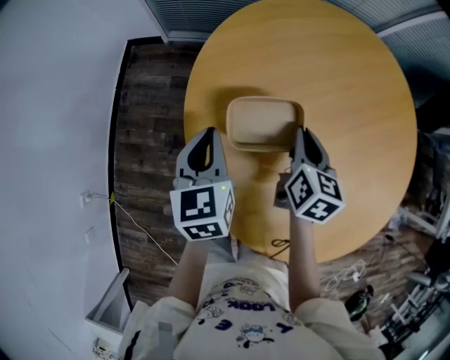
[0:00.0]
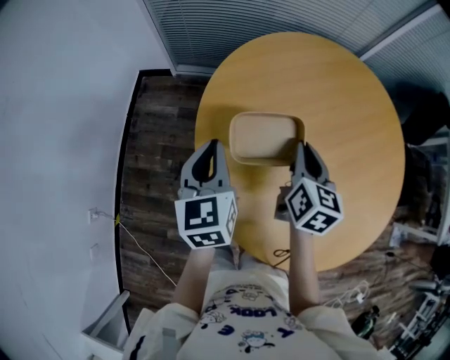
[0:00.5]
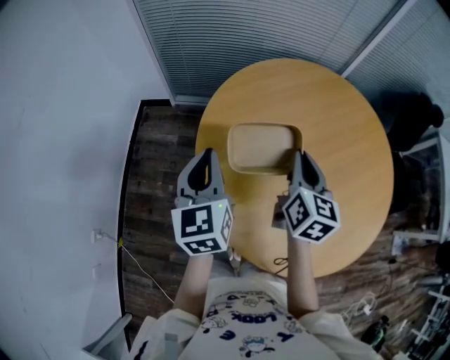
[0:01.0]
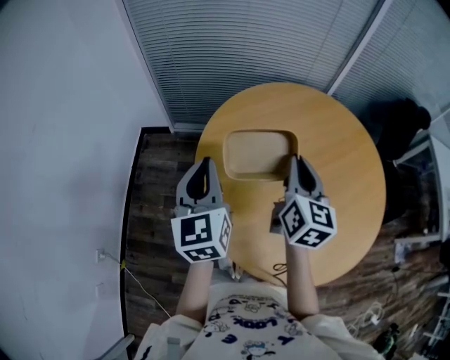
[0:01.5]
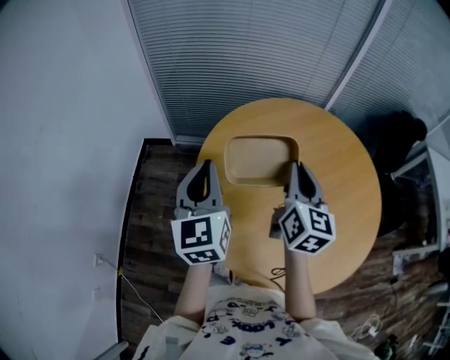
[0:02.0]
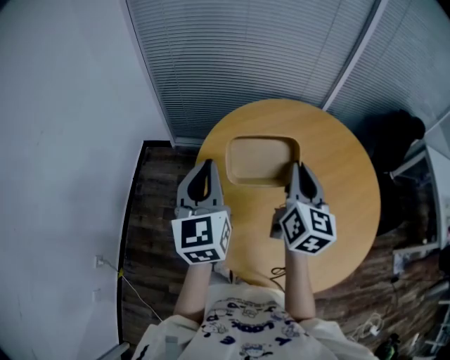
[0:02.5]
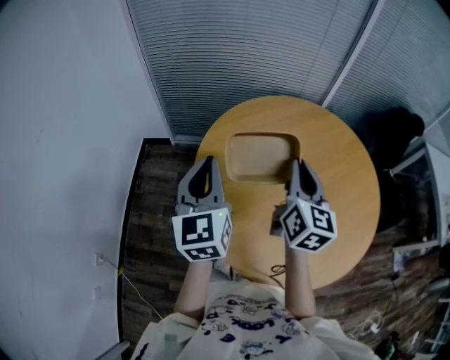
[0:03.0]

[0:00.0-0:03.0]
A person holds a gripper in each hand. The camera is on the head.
0:00.0 to 0:01.5: Both grippers travel together upward, some 20 cm. The left gripper rotates roughly 20 degrees, while the right gripper changes its angle by roughly 20 degrees.
0:01.5 to 0:03.0: The left gripper ends up about 5 cm from where it was.

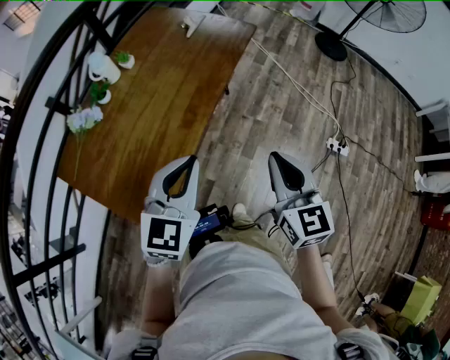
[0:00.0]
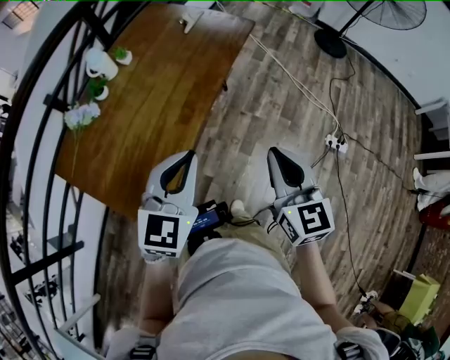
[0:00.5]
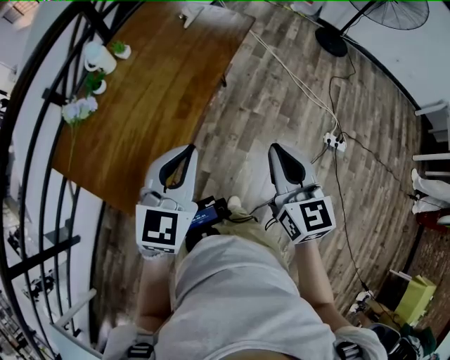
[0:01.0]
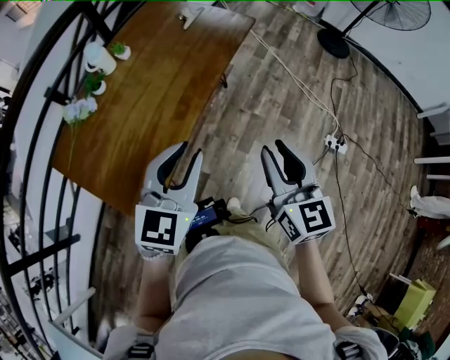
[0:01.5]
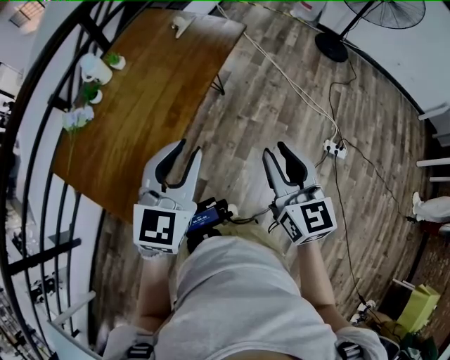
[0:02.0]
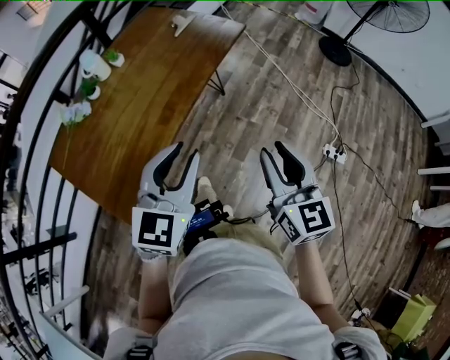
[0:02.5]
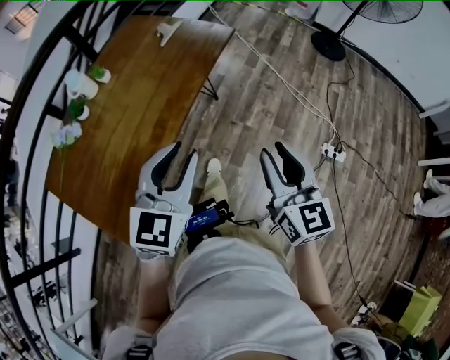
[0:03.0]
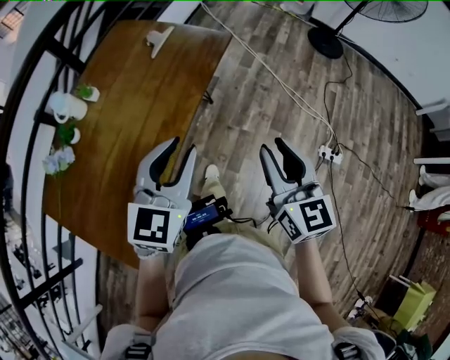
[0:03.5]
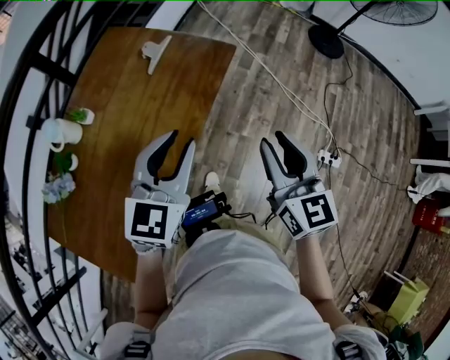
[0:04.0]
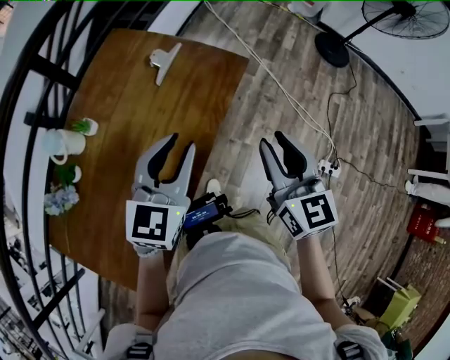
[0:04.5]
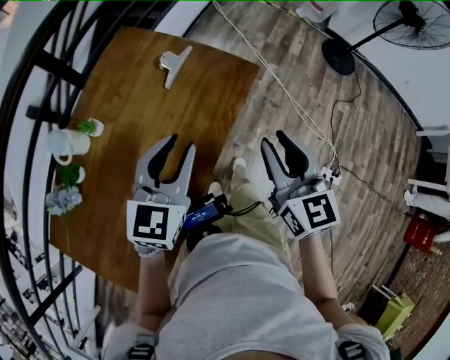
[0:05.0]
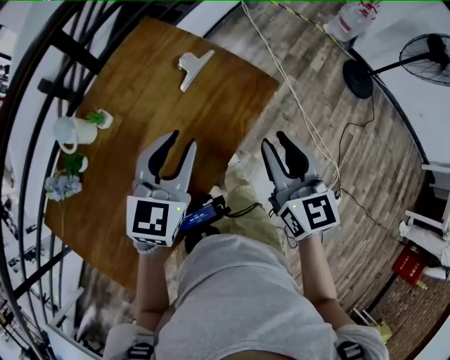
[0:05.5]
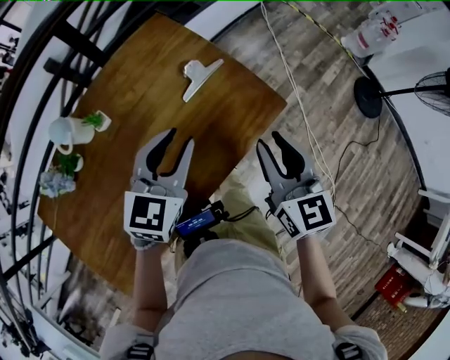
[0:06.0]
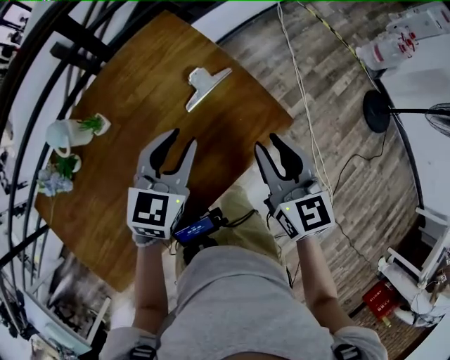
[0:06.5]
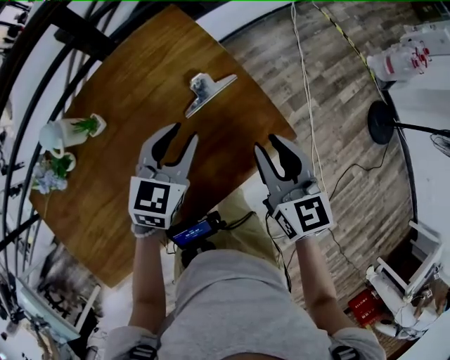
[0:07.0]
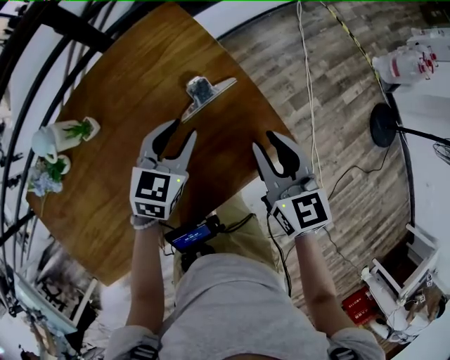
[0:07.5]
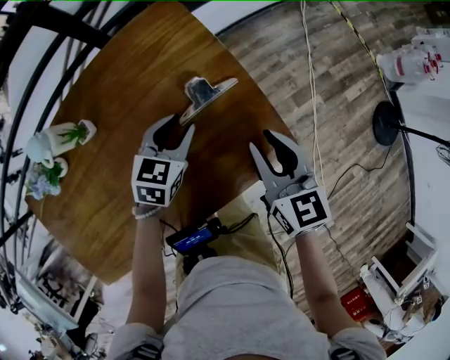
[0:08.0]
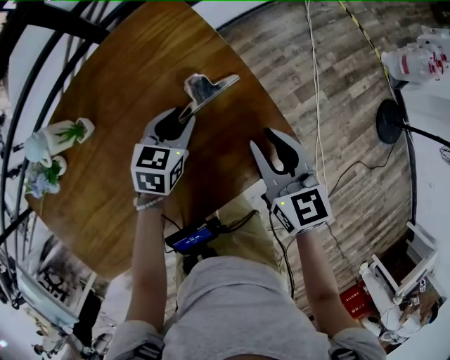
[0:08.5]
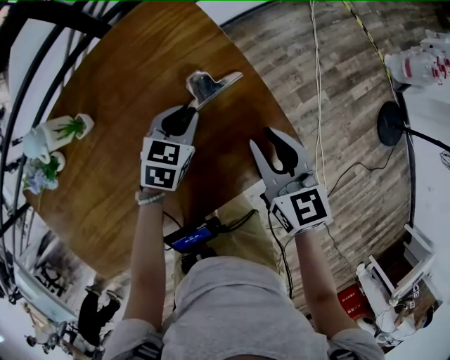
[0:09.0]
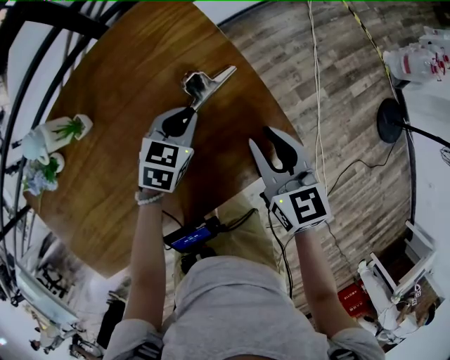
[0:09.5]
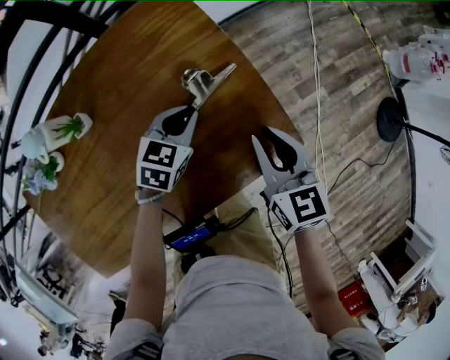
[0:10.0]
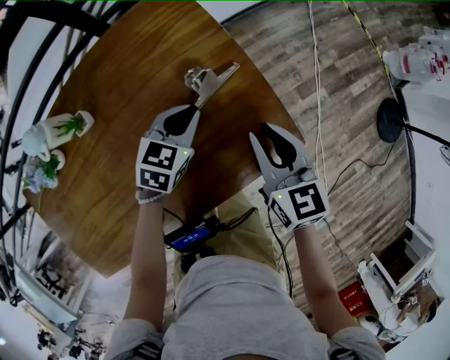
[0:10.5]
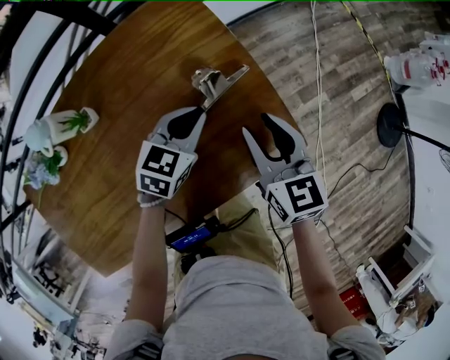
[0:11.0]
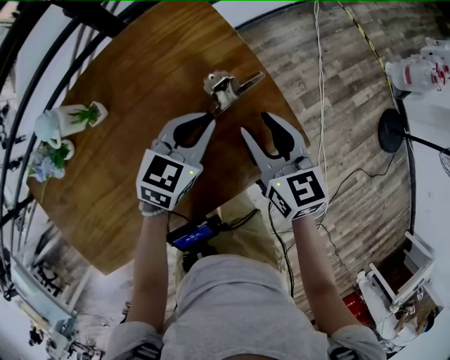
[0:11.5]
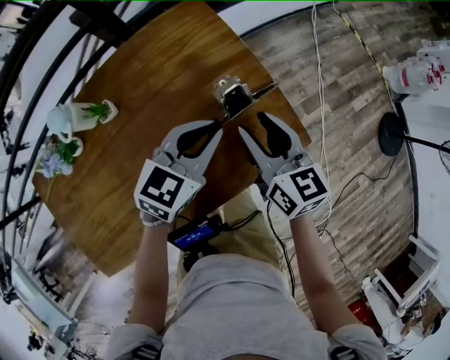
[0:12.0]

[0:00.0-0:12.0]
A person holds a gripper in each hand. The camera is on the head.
0:00.0 to 0:02.0: The two grippers go approximately 5 cm to the right. The left gripper opens; the right gripper opens its fingers.
0:02.0 to 0:04.0: The two grippers go approximately 25 cm forward.
0:04.0 to 0:06.0: The right gripper is displaced forward by roughly 20 cm, and swivels roughly 20 degrees; the left gripper moves forward and to the left, roughly 20 cm, and rotates approximately 20 degrees.
0:06.0 to 0:08.0: The right gripper heads forward and downward, covering some 15 cm; the left gripper goes approximately 20 cm downward and forward, and turns by some 20 degrees.
0:08.0 to 0:10.0: The left gripper closes its fingers.
0:10.0 to 0:12.0: The left gripper travels upward by some 15 cm, and rotates about 20 degrees. The right gripper shifts approximately 5 cm to the left, and opens.

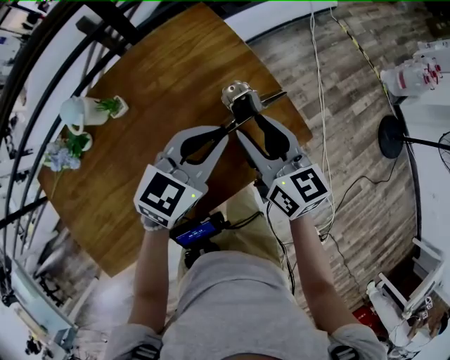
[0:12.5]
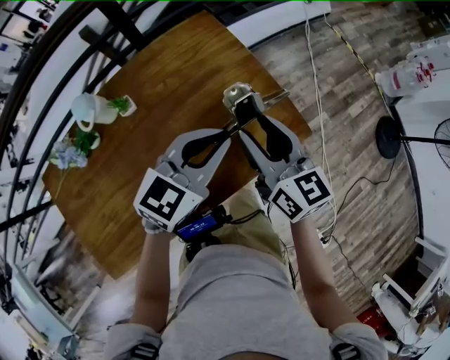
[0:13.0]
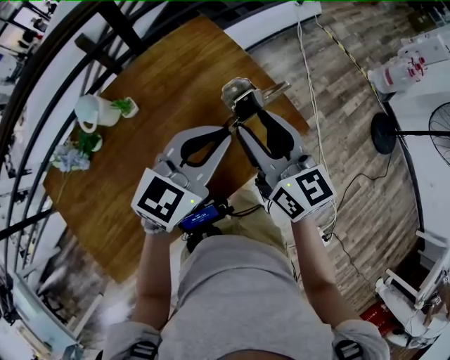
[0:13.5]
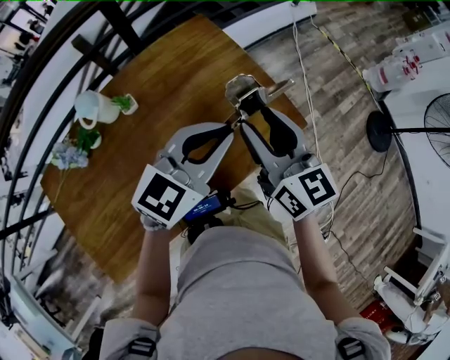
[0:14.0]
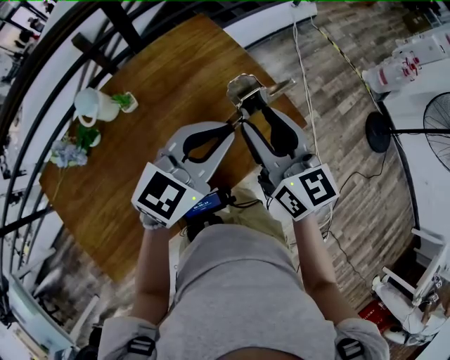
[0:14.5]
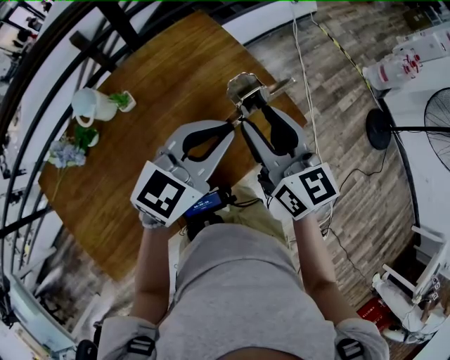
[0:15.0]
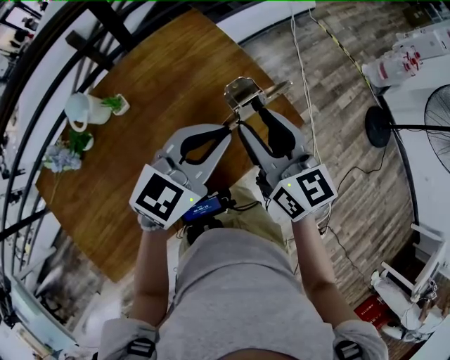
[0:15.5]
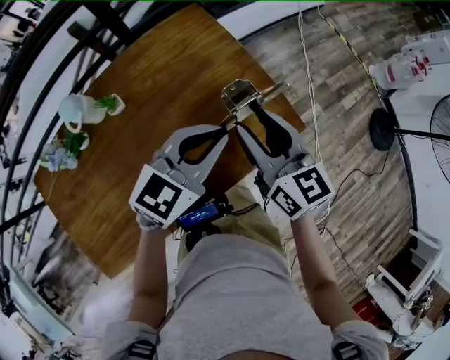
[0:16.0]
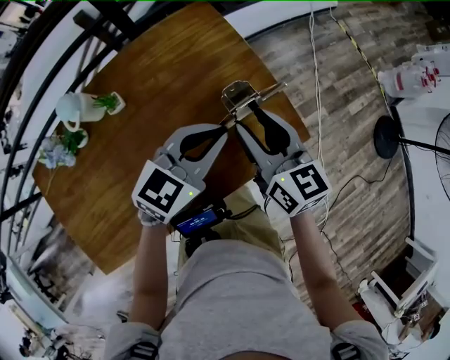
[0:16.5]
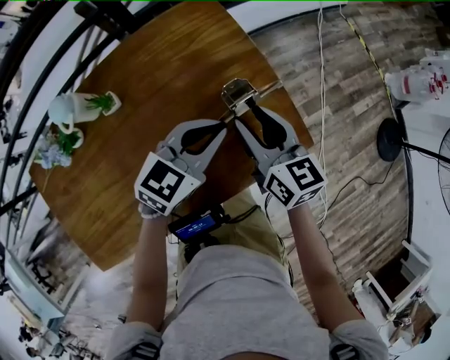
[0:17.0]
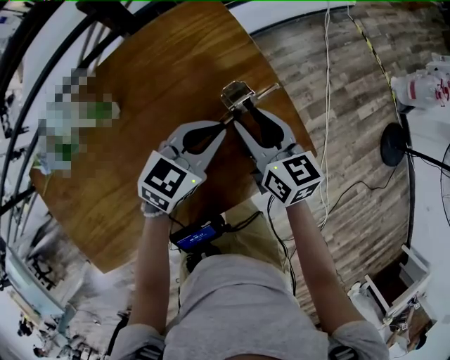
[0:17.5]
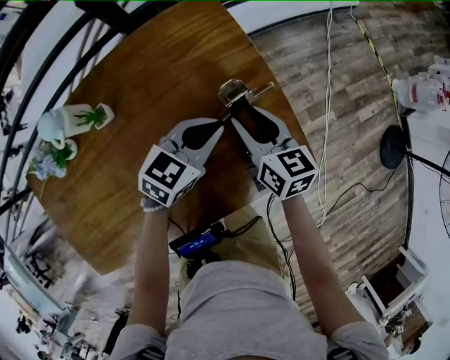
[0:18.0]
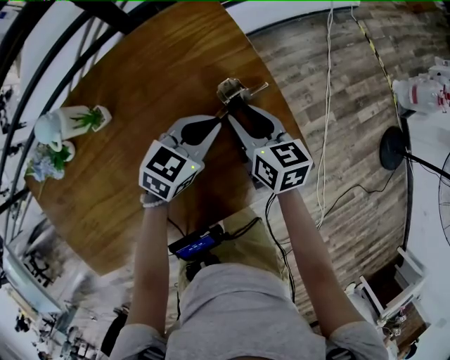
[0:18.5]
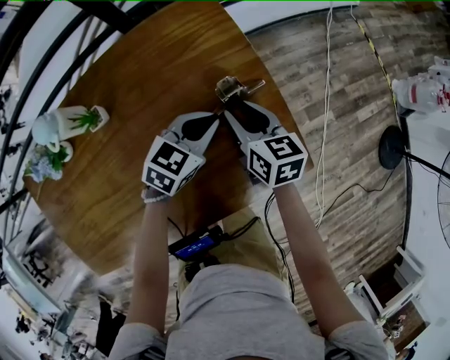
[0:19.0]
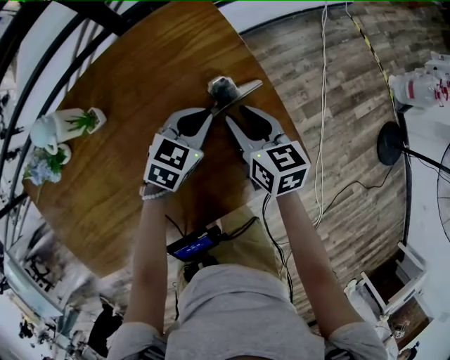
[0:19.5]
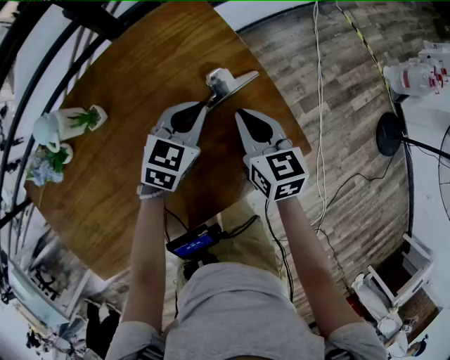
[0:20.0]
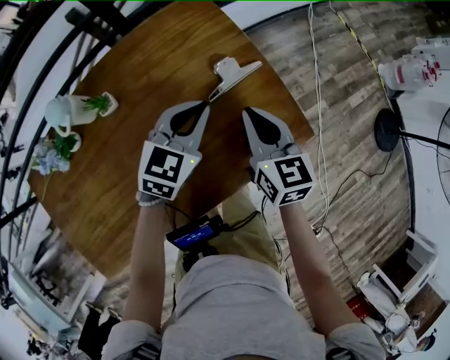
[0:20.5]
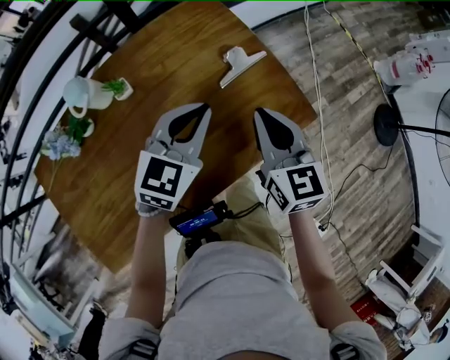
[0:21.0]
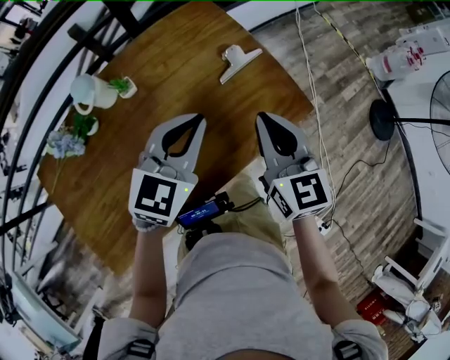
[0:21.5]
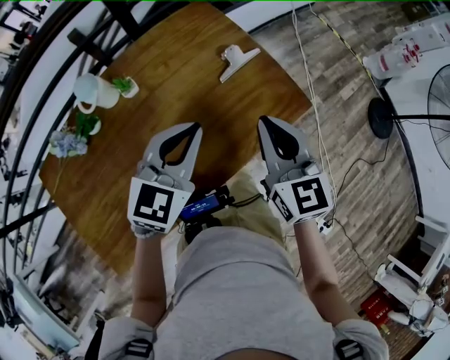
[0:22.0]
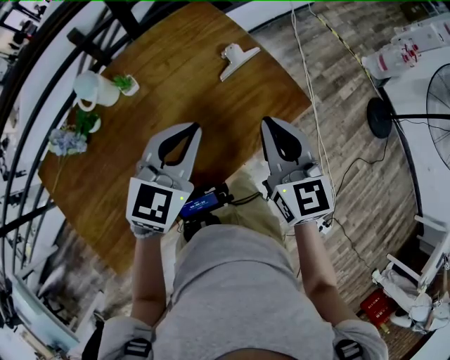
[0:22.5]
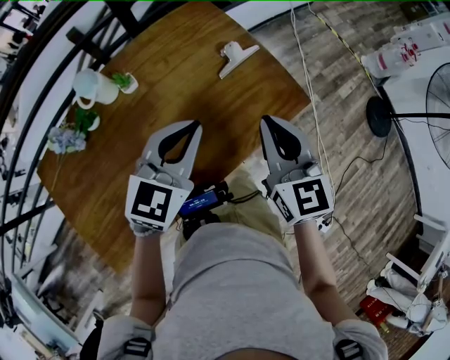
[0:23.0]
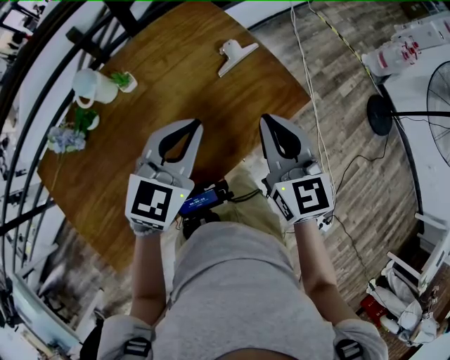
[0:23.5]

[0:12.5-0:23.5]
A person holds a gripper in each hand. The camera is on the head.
0:12.5 to 0:14.5: The left gripper heads upward and backward, covering about 10 cm, while the right gripper travels upward by some 10 cm.
0:14.5 to 0:16.0: The right gripper ends up approximately 5 cm from where it was. Meanwhile the left gripper changes place by about 5 cm.
0:16.0 to 0:18.0: The grippers both shift downward and forward by some 20 cm.
0:18.0 to 0:20.0: The right gripper closes up.
0:20.0 to 0:21.5: Both grippers move upward and backward, about 20 cm. The right gripper turns by approximately 20 degrees.
0:21.5 to 0:23.5: There are only small adjustments of the grippers.

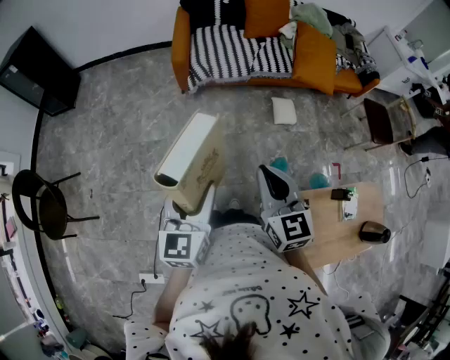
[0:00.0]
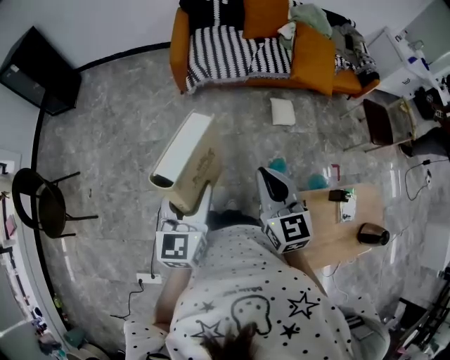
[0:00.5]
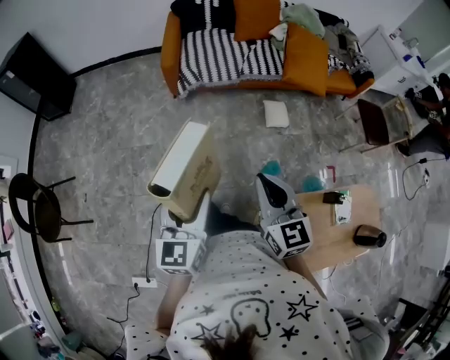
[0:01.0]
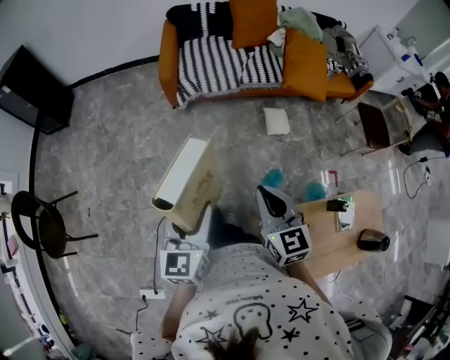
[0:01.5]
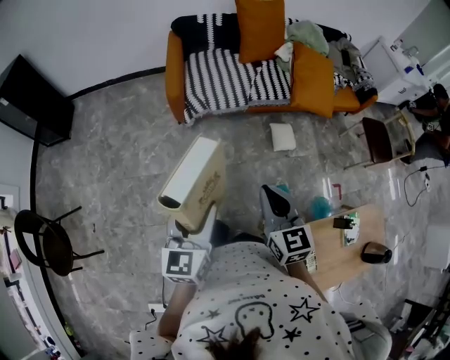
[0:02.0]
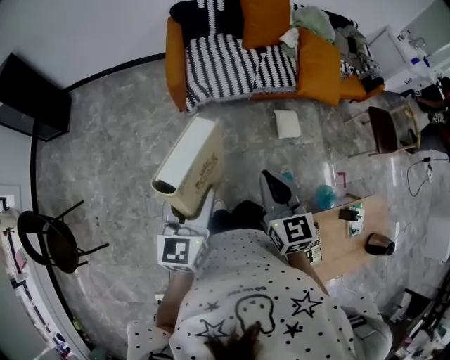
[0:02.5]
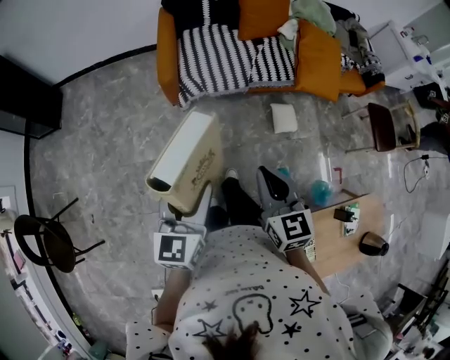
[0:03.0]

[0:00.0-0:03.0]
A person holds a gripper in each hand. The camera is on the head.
0:00.0 to 0:01.5: The right gripper moves about 5 cm.
0:01.5 to 0:03.0: The two grippers go roughly 20 cm forward.
